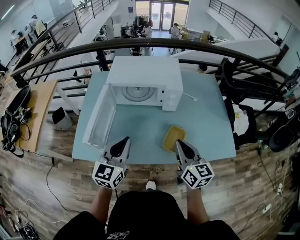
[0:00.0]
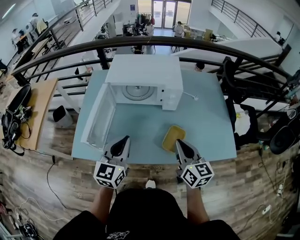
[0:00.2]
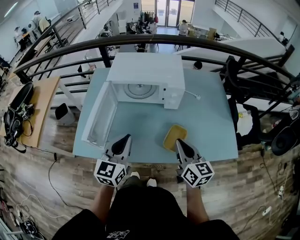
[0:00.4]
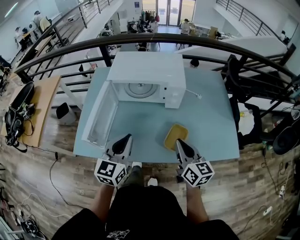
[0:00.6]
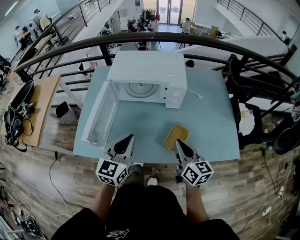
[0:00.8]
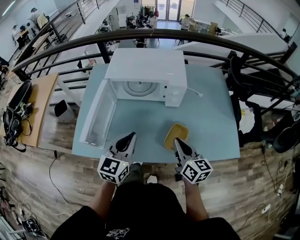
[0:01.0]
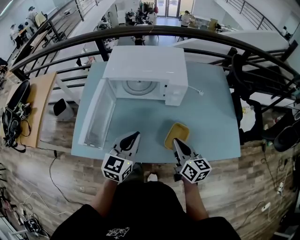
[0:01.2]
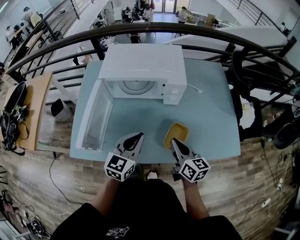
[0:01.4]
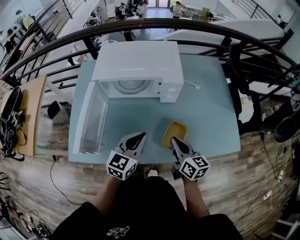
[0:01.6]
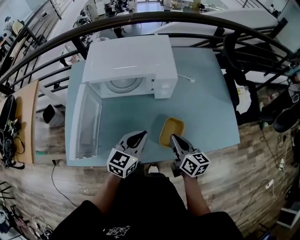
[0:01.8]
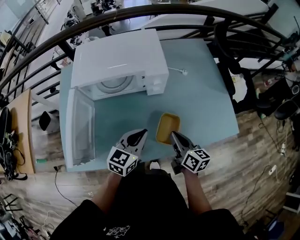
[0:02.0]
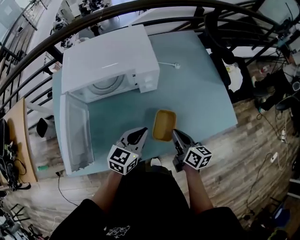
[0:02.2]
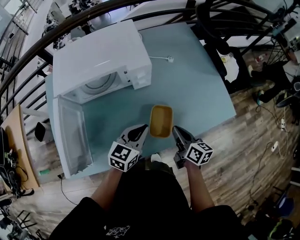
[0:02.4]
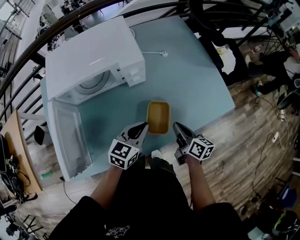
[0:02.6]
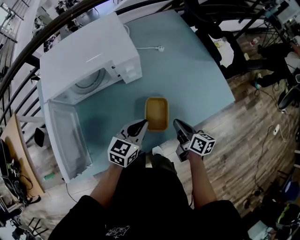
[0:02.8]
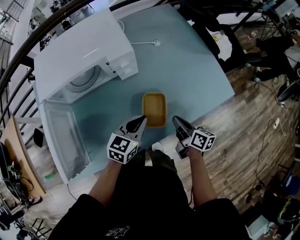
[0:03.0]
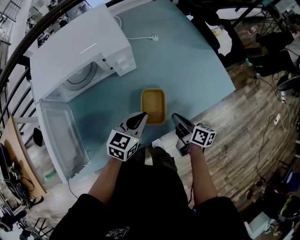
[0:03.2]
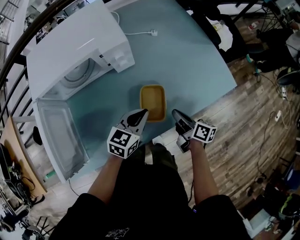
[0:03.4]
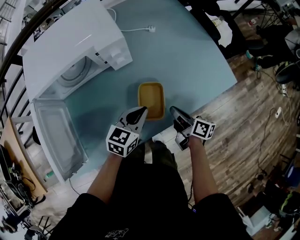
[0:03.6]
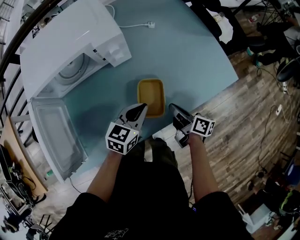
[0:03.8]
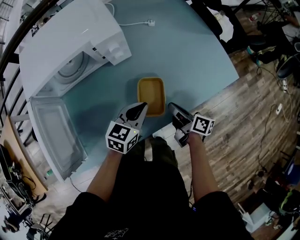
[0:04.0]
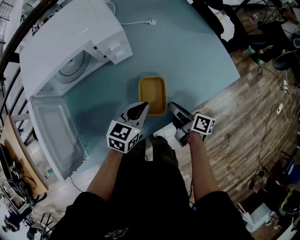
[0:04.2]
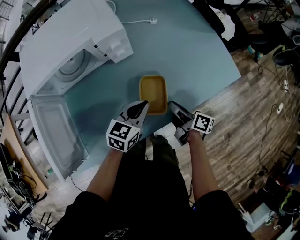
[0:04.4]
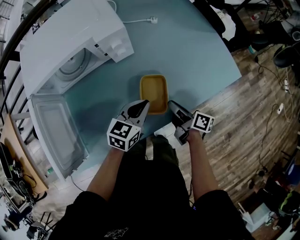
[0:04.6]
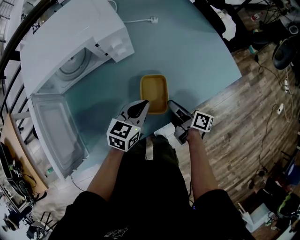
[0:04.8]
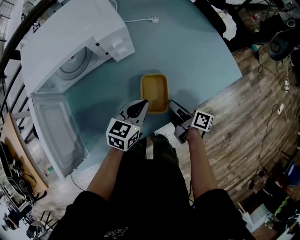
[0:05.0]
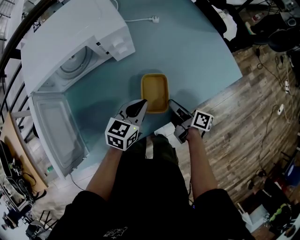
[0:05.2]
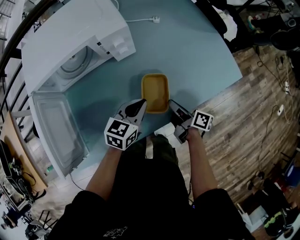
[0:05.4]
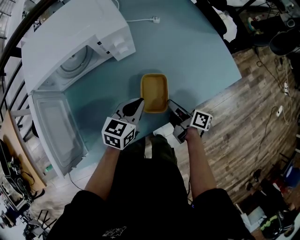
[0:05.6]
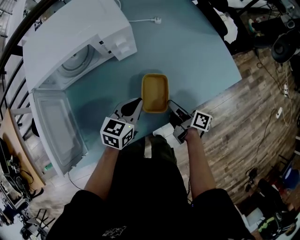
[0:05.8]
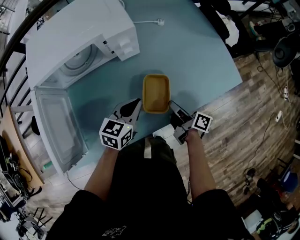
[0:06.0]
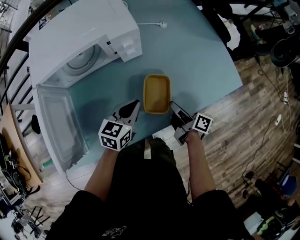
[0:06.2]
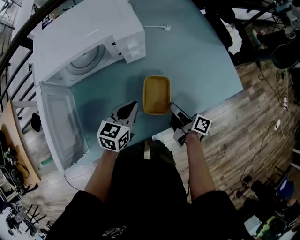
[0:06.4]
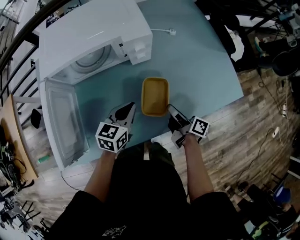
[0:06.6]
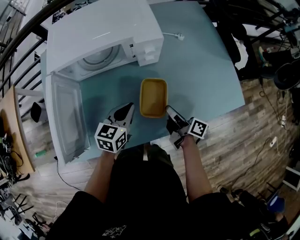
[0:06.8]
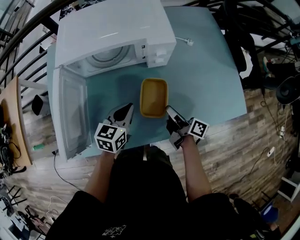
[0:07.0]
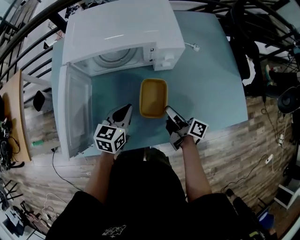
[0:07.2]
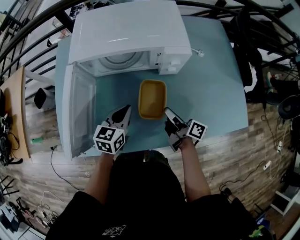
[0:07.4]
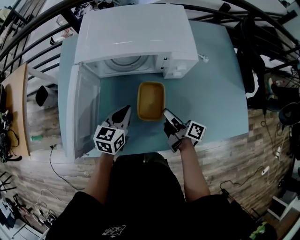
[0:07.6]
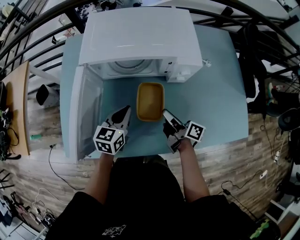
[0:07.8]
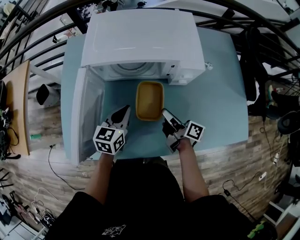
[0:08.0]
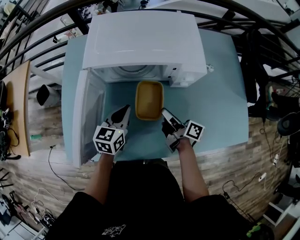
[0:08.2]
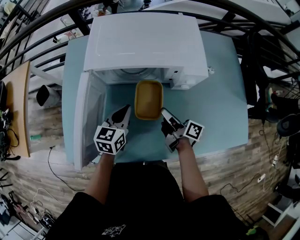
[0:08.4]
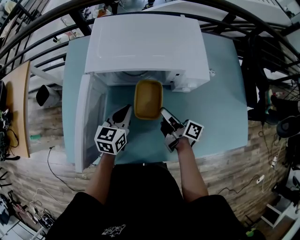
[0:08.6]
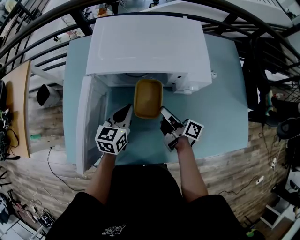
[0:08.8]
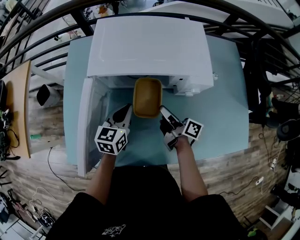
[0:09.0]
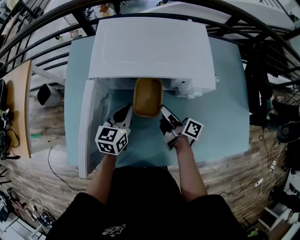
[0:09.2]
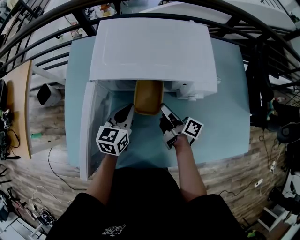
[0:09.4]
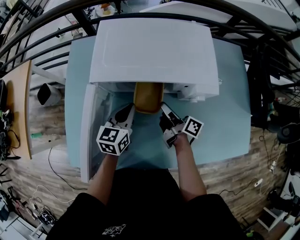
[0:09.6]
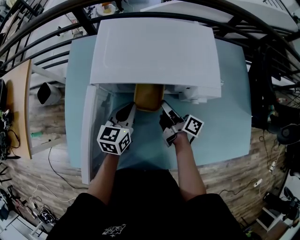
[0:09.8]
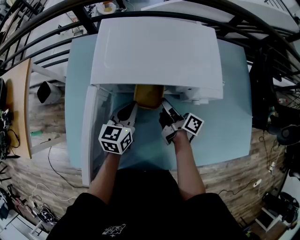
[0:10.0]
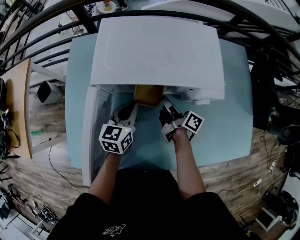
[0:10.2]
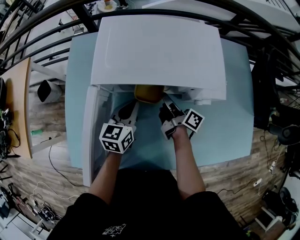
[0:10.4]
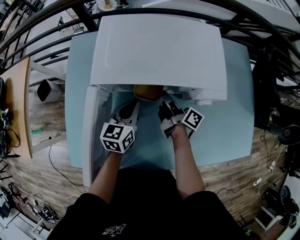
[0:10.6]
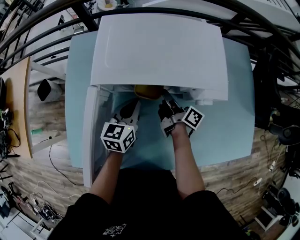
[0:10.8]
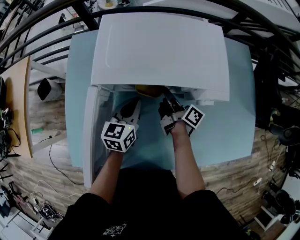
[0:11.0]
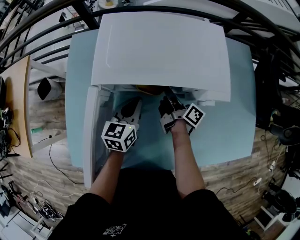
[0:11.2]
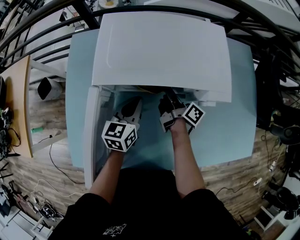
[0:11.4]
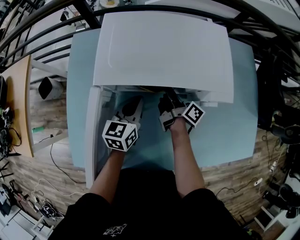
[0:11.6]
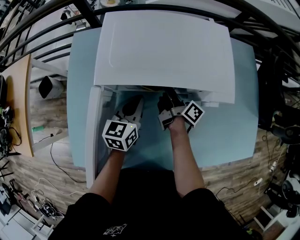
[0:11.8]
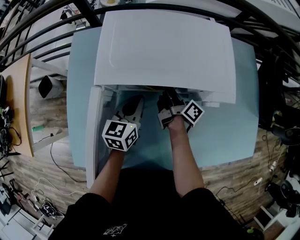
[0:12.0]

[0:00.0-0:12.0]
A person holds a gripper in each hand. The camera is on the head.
0:00.0 to 0:01.6: The left gripper moves downward, to the right and forward, approximately 15 cm, while the right gripper is displaced downward and forward by roughly 15 cm.
0:01.6 to 0:03.0: The two grippers go about 15 cm downward and to the right. The right gripper changes its angle by some 30 degrees; the left gripper rotates some 30 degrees.
0:03.0 to 0:04.4: The right gripper ends up roughly 5 cm from where it was.
0:04.4 to 0:06.0: The grippers make only small movements.
0:06.0 to 0:07.6: The left gripper travels to the left by roughly 20 cm, and turns by some 30 degrees. Meanwhile the right gripper shifts some 20 cm to the left and forward.
0:07.6 to 0:09.0: The right gripper shifts approximately 10 cm forward and to the left. Meanwhile the left gripper heads forward, covering some 10 cm.
0:09.0 to 0:10.4: The left gripper shifts by roughly 5 cm. The right gripper heads forward, covering some 10 cm.
0:10.4 to 0:12.0: The right gripper shifts by some 5 cm.

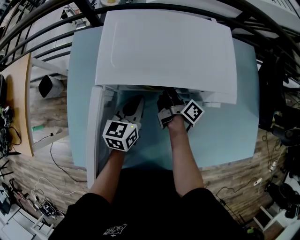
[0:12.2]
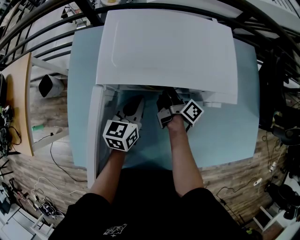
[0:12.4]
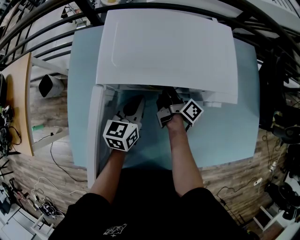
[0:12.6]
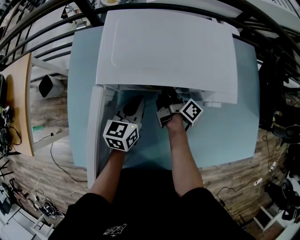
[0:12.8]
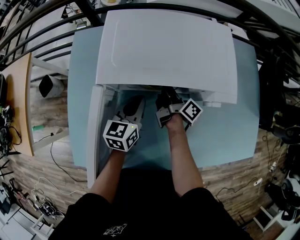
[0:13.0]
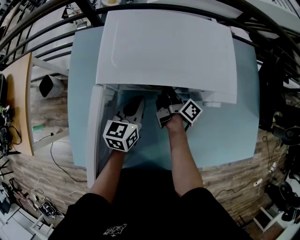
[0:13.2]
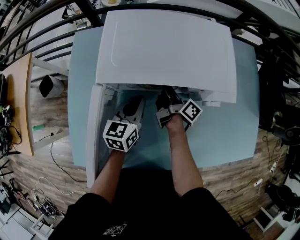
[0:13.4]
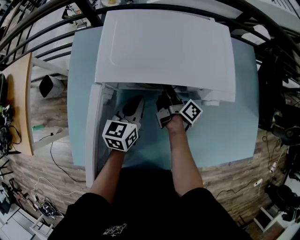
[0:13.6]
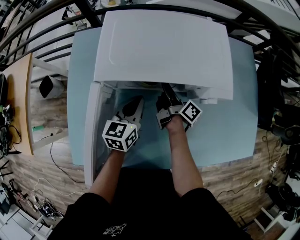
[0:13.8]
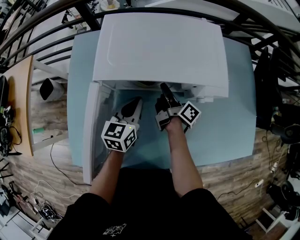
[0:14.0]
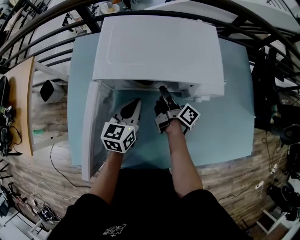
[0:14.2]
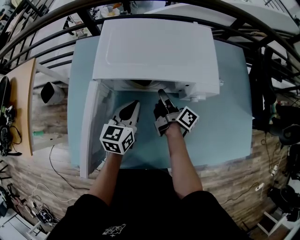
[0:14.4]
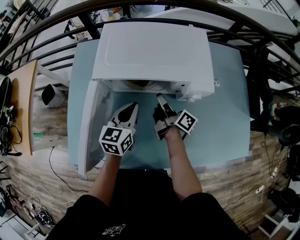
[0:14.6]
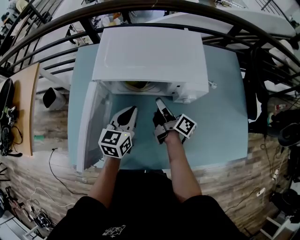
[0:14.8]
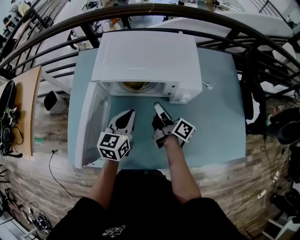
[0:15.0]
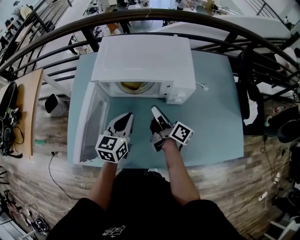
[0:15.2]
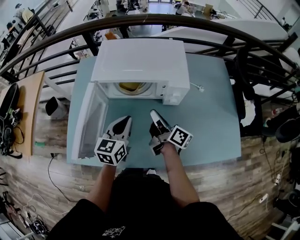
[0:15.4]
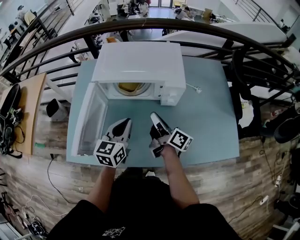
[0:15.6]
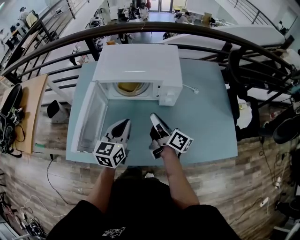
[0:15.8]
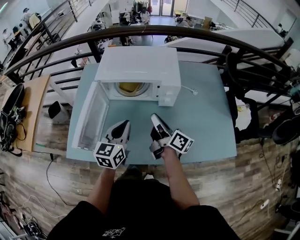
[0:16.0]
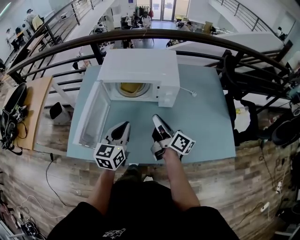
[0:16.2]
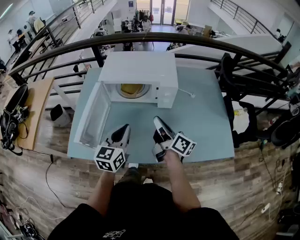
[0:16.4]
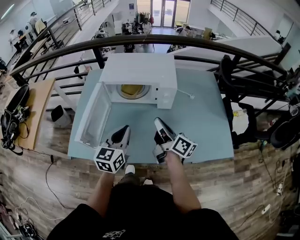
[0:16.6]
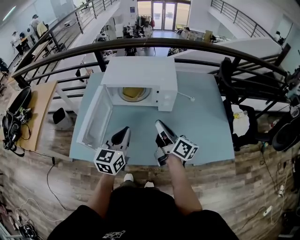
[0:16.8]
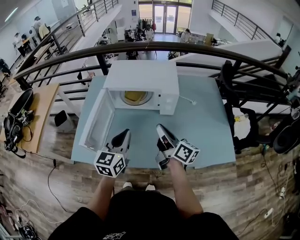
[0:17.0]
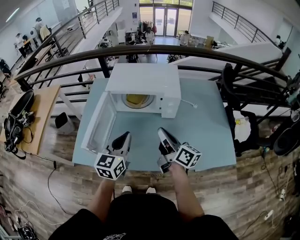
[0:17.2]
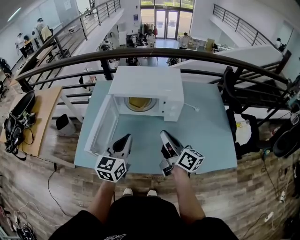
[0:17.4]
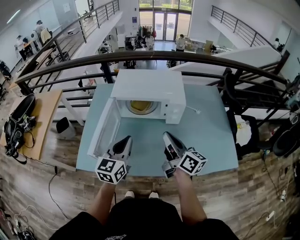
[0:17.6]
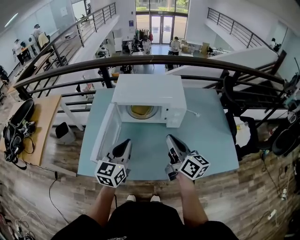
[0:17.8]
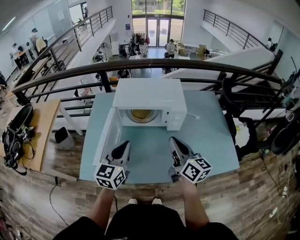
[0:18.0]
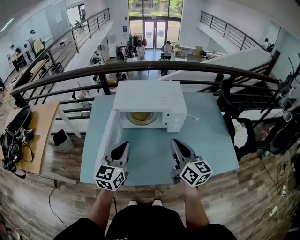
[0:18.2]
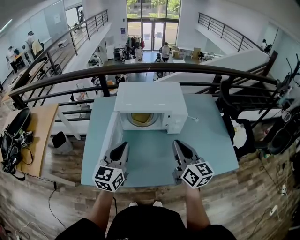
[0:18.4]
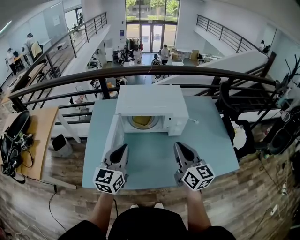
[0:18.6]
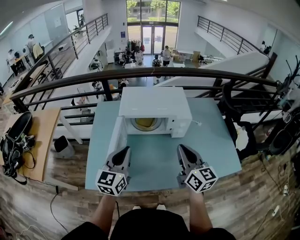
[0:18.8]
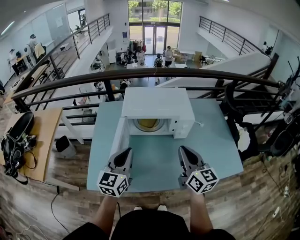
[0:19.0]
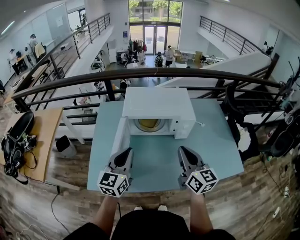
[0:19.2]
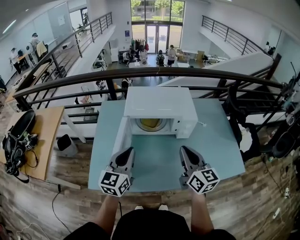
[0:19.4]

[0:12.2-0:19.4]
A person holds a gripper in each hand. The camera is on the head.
0:12.2 to 0:13.6: Neither gripper changes place.
0:13.6 to 0:15.0: Both grippers travel together backward and upward, some 15 cm.
0:15.0 to 0:16.6: The two grippers go about 20 cm backward and upward.
0:16.6 to 0:18.0: The right gripper shifts roughly 10 cm upward, and turns by some 30 degrees. Meanwhile the left gripper is displaced to the left and upward by about 10 cm.
0:18.0 to 0:19.4: The left gripper travels to the left by some 5 cm.

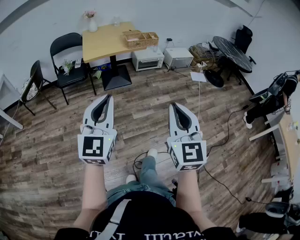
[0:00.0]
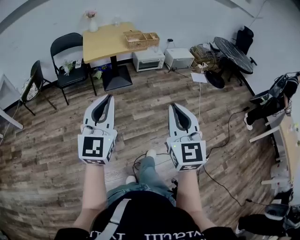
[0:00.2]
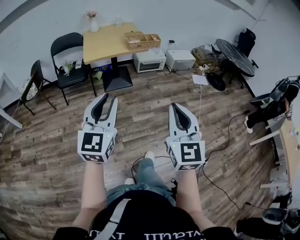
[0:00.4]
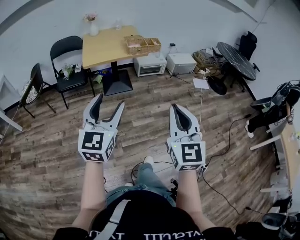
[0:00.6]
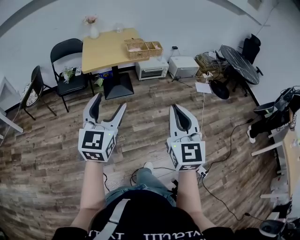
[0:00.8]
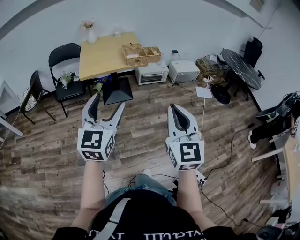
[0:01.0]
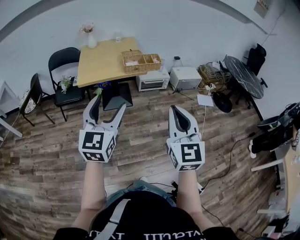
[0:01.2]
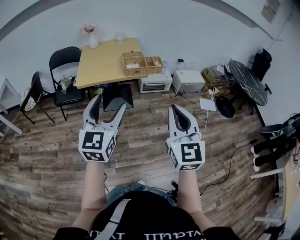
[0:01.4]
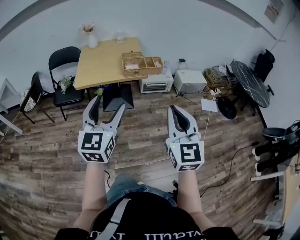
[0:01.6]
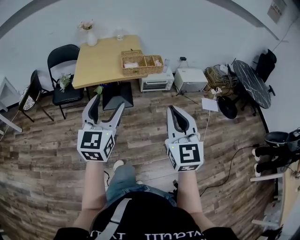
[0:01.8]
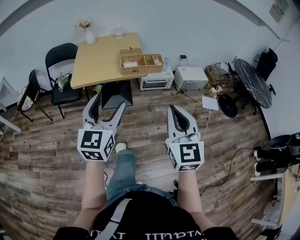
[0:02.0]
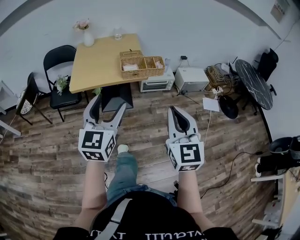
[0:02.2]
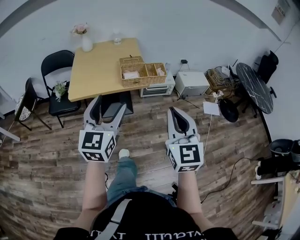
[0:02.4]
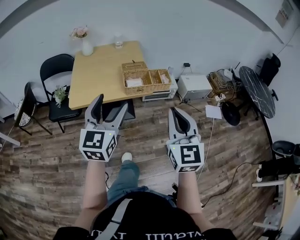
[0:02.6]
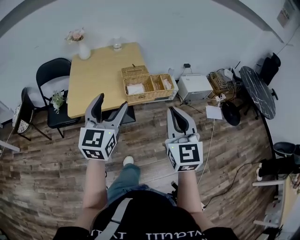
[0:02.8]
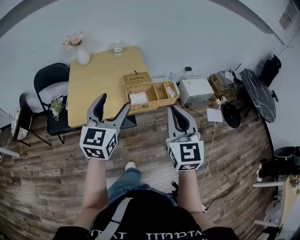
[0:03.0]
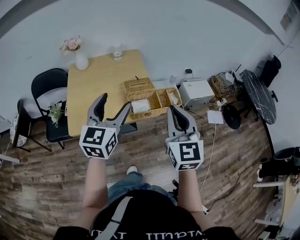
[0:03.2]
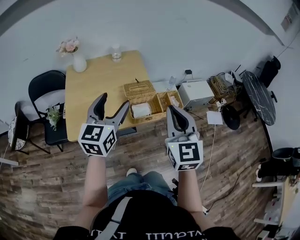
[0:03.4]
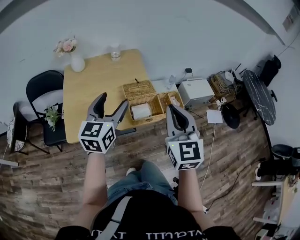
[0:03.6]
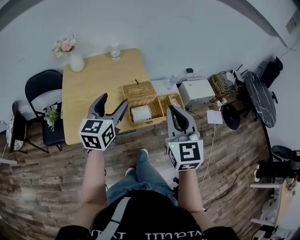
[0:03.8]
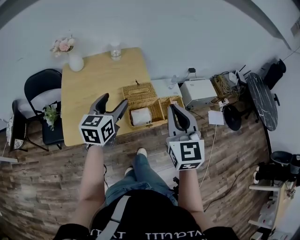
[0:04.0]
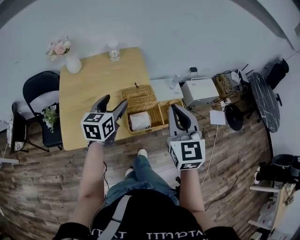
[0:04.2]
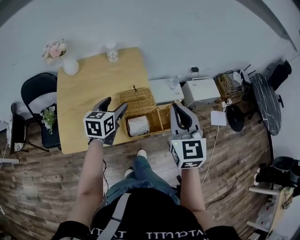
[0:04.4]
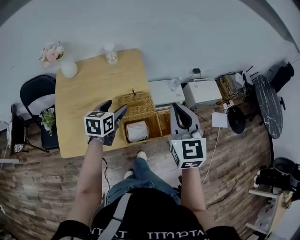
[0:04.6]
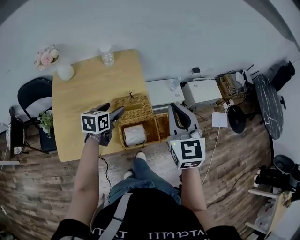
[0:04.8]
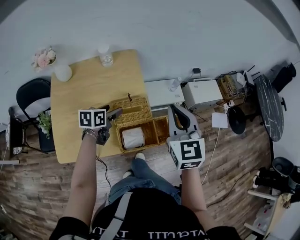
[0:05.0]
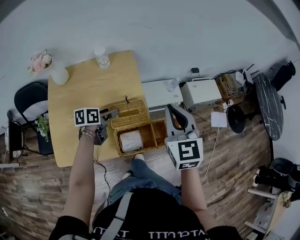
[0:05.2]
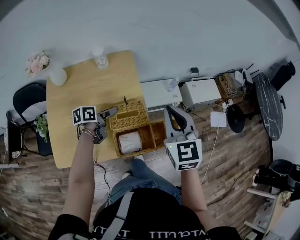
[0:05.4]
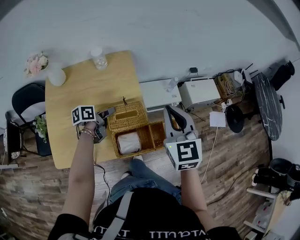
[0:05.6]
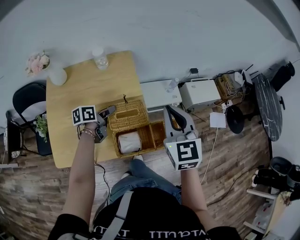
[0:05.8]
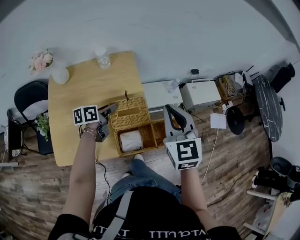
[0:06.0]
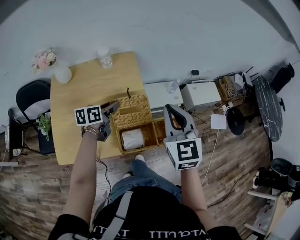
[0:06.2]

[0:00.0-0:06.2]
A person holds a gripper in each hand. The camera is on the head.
0:00.0 to 0:01.6: Both grippers move forward, approximately 35 cm. The left gripper opens up.
0:01.6 to 0:03.2: The two grippers travel together, forward, some 40 cm.
0:03.2 to 0:04.6: The right gripper is displaced forward by approximately 20 cm. Meanwhile the left gripper travels forward and downward by about 30 cm, and changes its angle by approximately 30 degrees.
0:04.6 to 0:06.2: The left gripper shifts roughly 5 cm forward, changes its angle by approximately 20 degrees, and closes its fingers.
